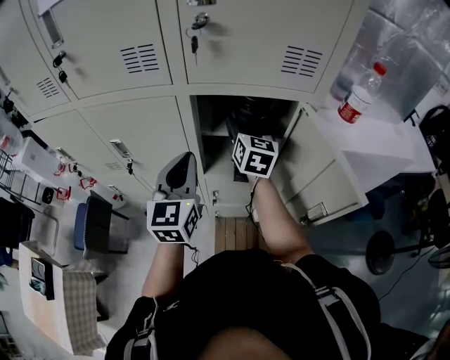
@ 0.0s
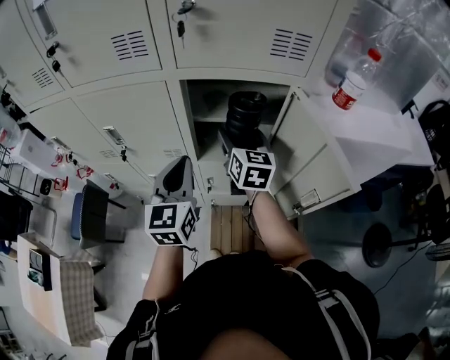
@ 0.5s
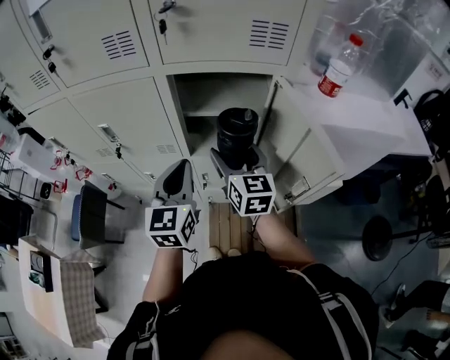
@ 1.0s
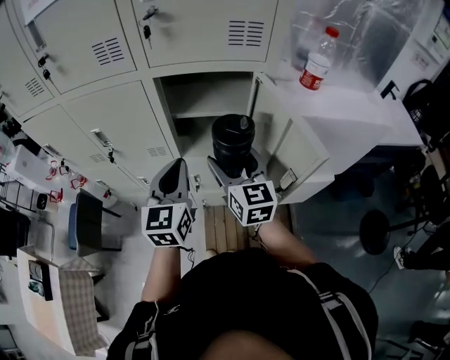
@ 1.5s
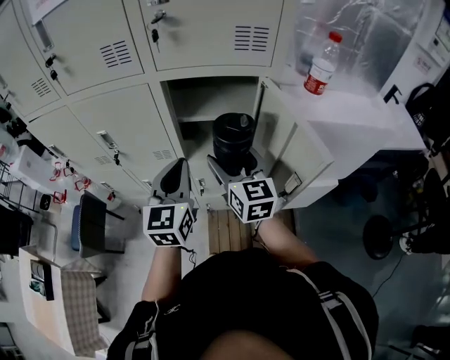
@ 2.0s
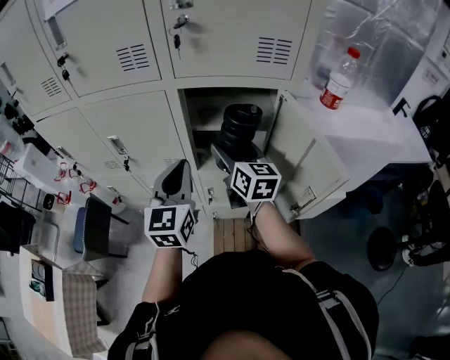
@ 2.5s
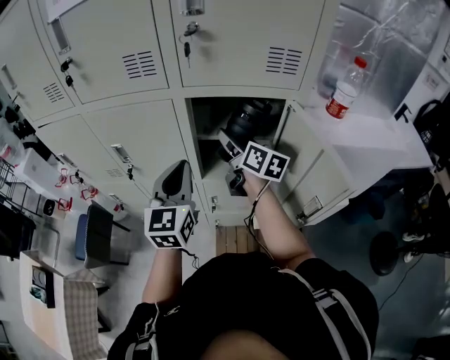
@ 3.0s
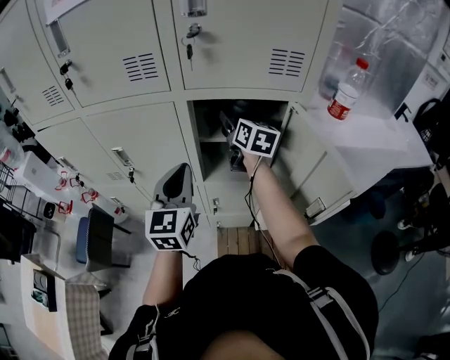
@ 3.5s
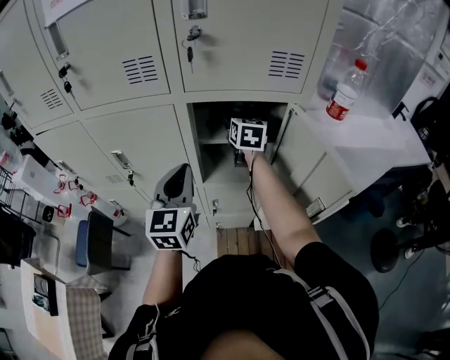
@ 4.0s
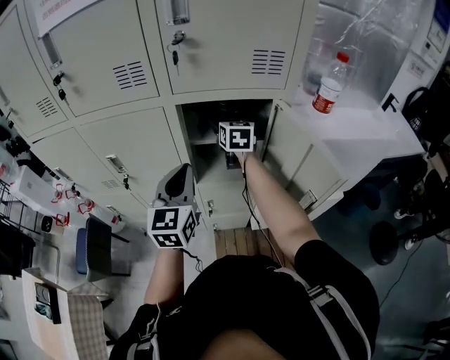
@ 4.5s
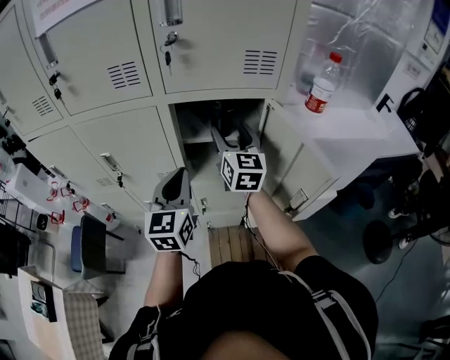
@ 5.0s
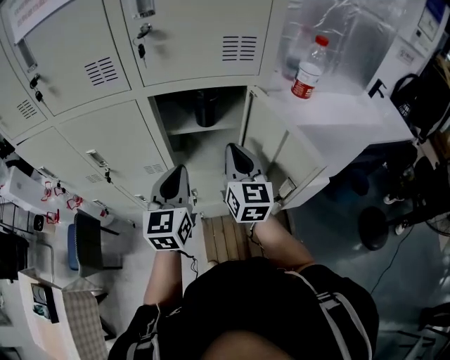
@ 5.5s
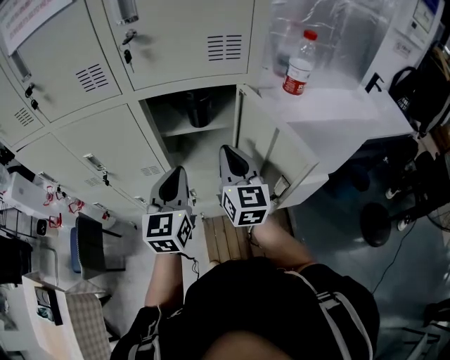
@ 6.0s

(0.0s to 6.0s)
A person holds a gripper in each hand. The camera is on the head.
0.0s - 2.0s: The right gripper goes approximately 20 cm backward. Meanwhile the left gripper shifts approximately 10 cm backward and to the right.
2.0s - 4.0s: The left gripper travels forward and to the left by about 10 cm, while the right gripper heads forward, covering about 25 cm.
4.0s - 6.0s: The right gripper heads backward, covering approximately 25 cm, and closes, while the left gripper is displaced to the right by roughly 10 cm.

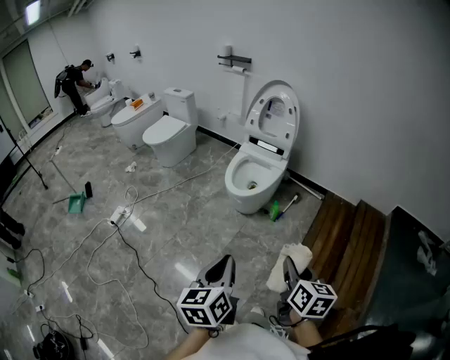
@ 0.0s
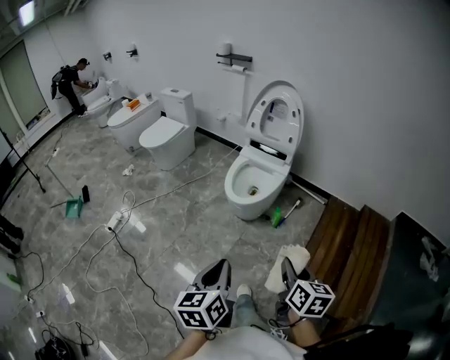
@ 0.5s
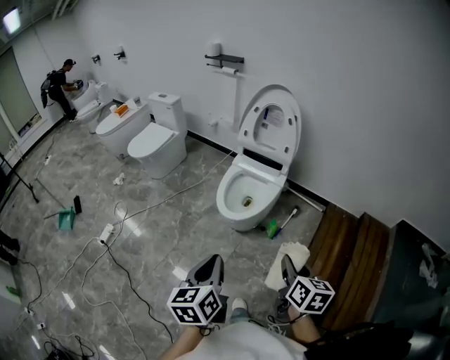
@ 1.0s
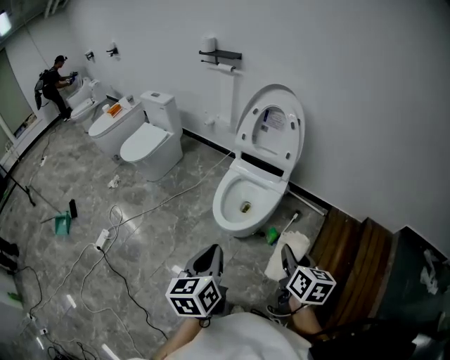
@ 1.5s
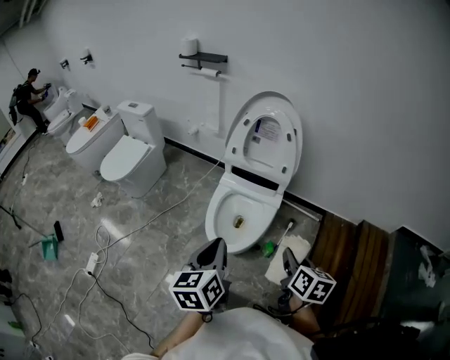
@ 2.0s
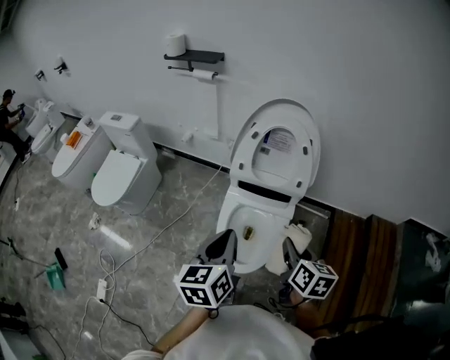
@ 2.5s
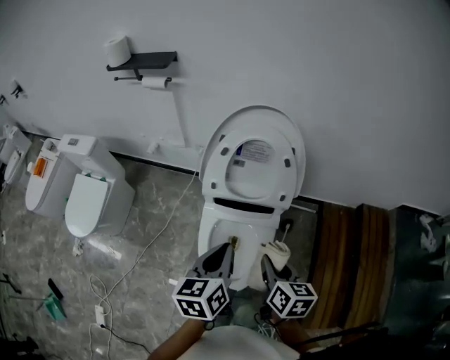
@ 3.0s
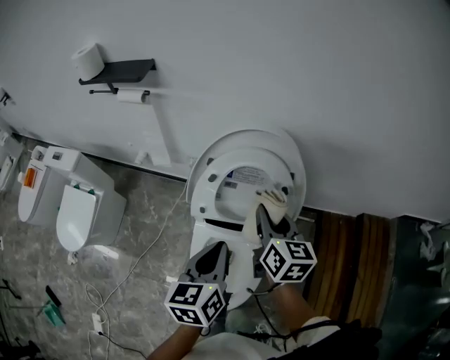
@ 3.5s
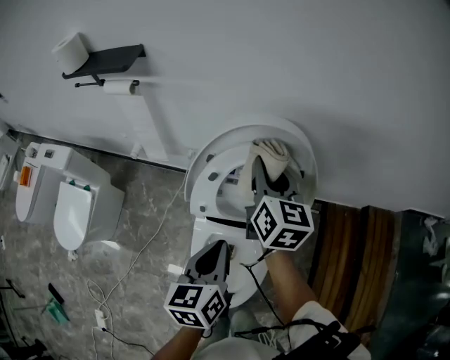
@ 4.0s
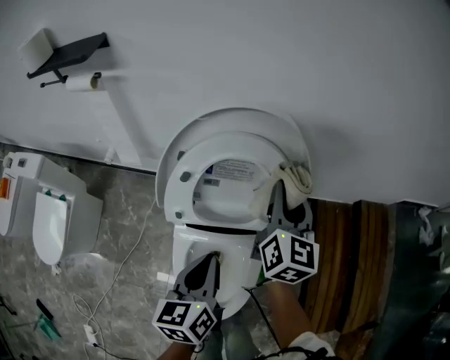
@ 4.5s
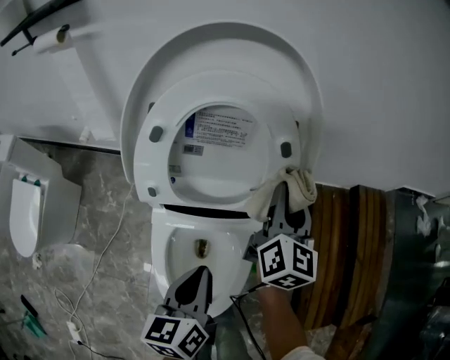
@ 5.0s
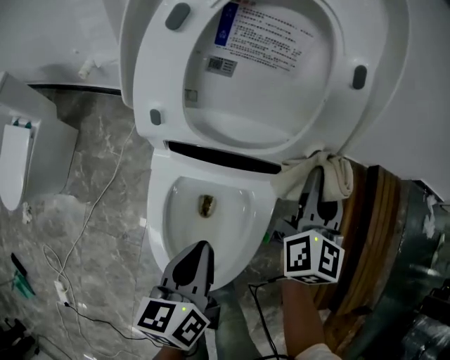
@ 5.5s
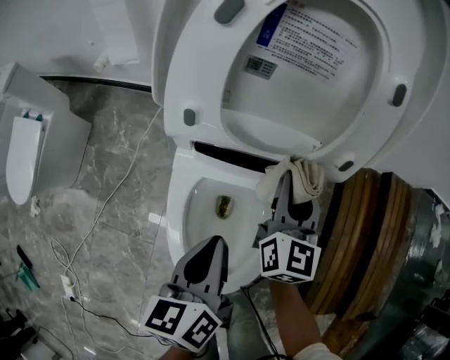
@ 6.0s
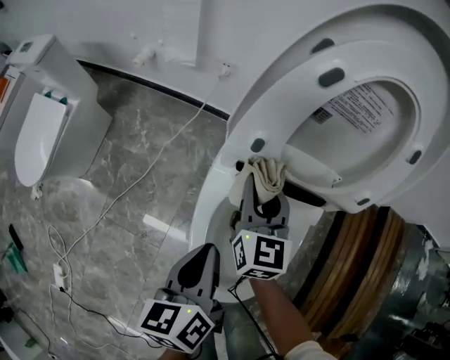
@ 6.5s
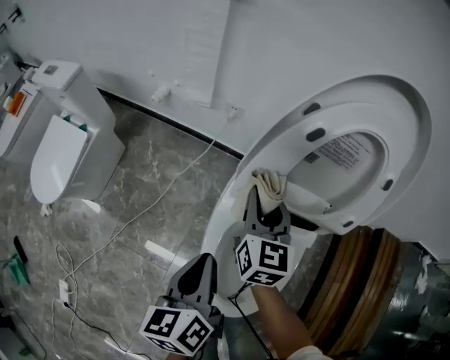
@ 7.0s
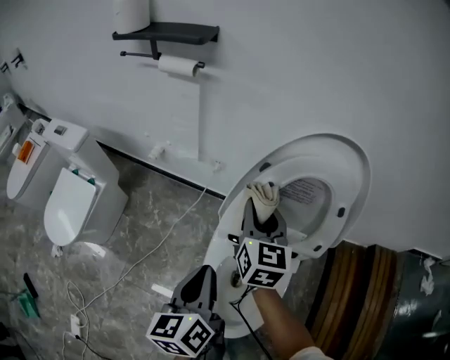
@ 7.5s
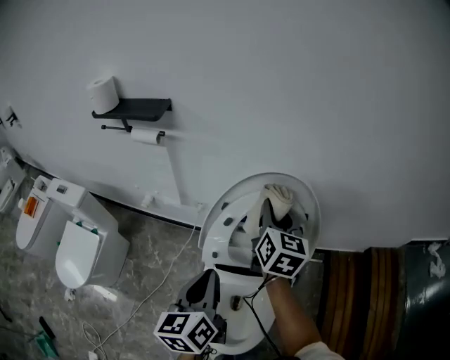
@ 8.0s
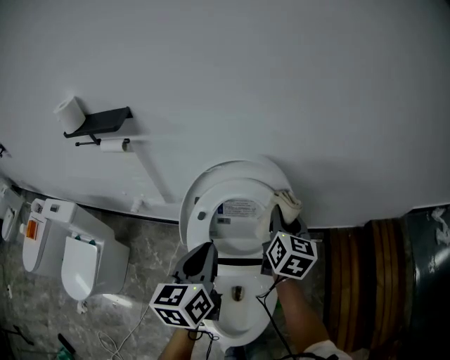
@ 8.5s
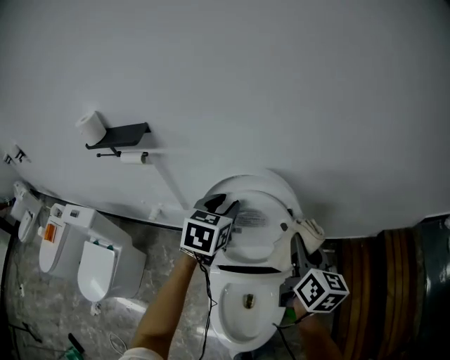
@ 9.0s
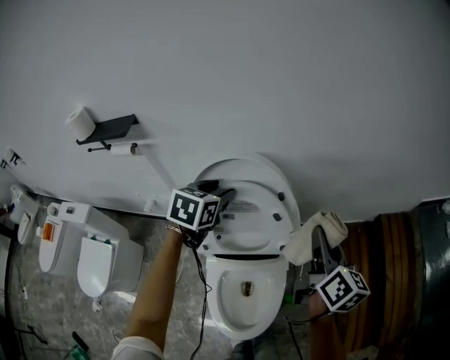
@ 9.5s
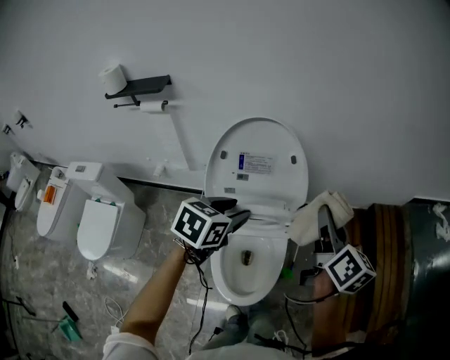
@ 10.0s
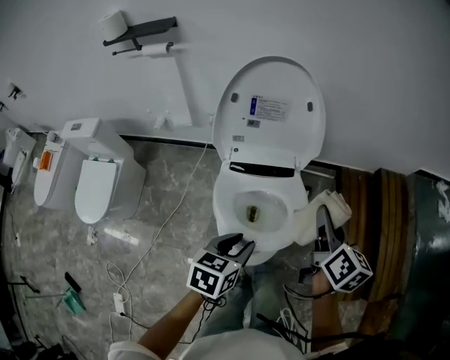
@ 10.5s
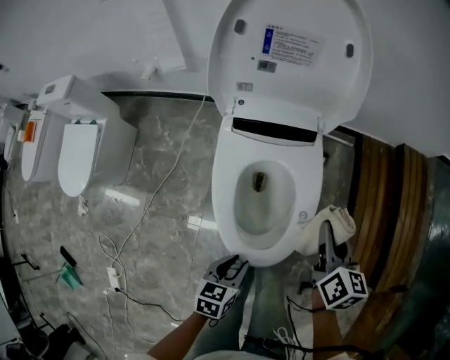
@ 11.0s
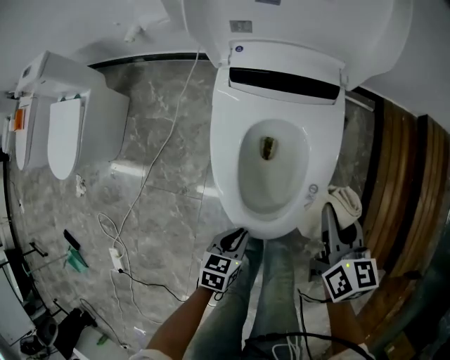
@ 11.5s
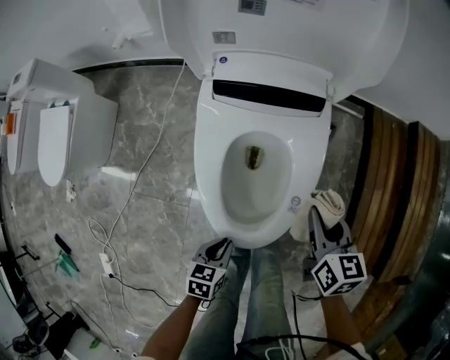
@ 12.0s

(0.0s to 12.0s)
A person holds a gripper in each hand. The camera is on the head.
0.0s - 2.0s: The pair of grippers is taken forward, roughly 50 cm.
2.0s - 4.0s: Both grippers are carried forward, roughly 50 cm. The right gripper rotates about 30 degrees.
4.0s - 6.0s: The left gripper is displaced downward by some 25 cm; the right gripper is displaced downward and backward by about 35 cm.
6.0s - 8.0s: The left gripper shifts roughly 25 cm upward. Meanwhile the right gripper is displaced upward and forward by about 35 cm.
8.0s - 10.0s: The right gripper shifts some 30 cm backward and to the right, and turns by approximately 30 degrees. Meanwhile the left gripper goes about 10 cm to the right, travels forward and back again, some 20 cm each way, rotates approximately 50 degrees, and opens.
10.0s - 12.0s: The right gripper travels downward by about 40 cm, and tips its fingers downward by about 30 degrees, while the left gripper heads downward and backward, covering some 60 cm, swivels approximately 30 degrees, and closes its fingers.

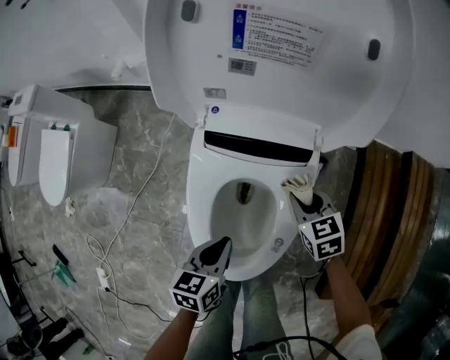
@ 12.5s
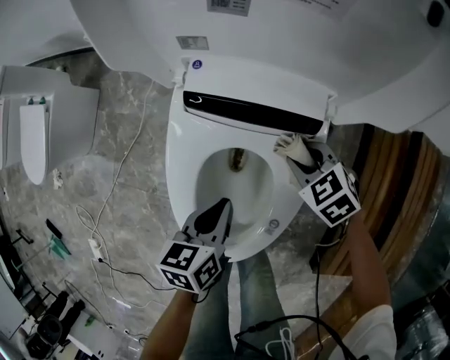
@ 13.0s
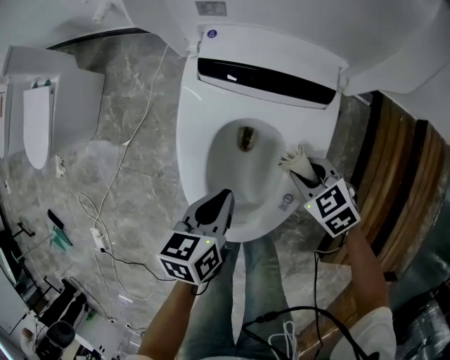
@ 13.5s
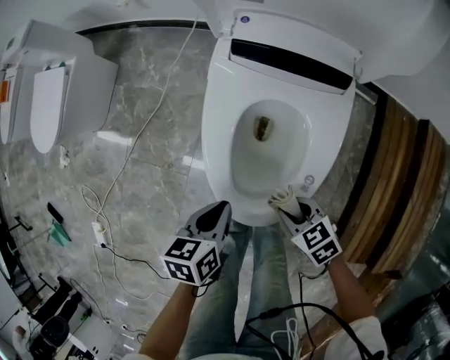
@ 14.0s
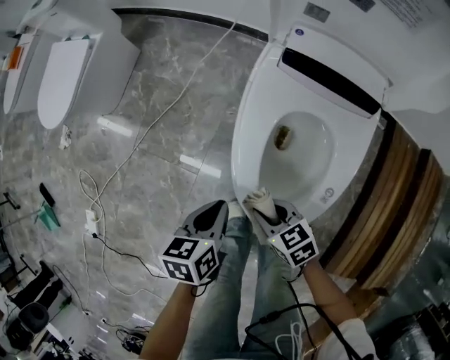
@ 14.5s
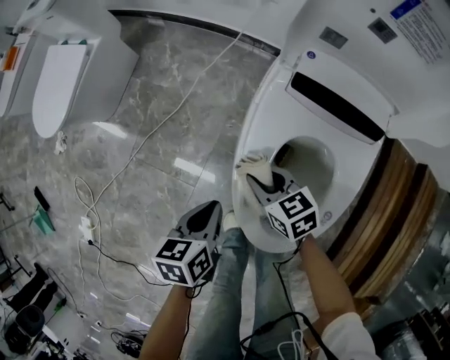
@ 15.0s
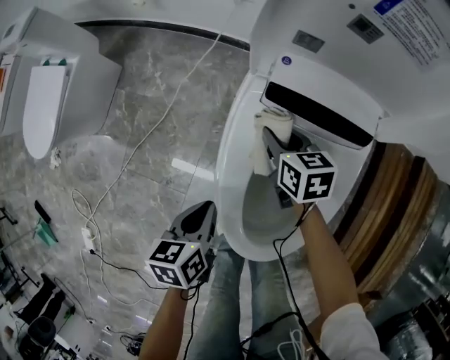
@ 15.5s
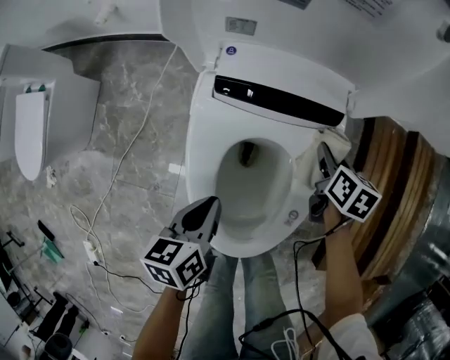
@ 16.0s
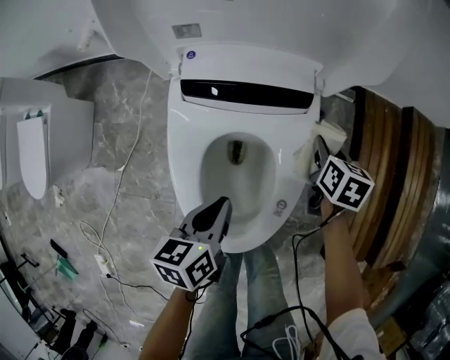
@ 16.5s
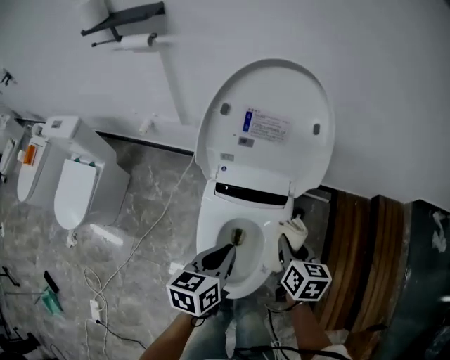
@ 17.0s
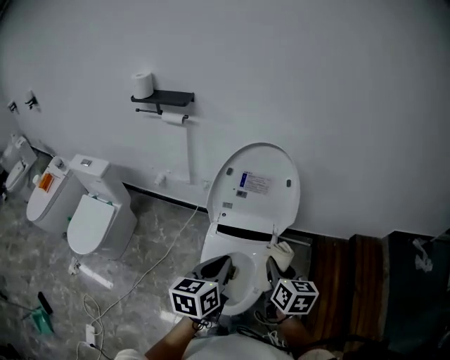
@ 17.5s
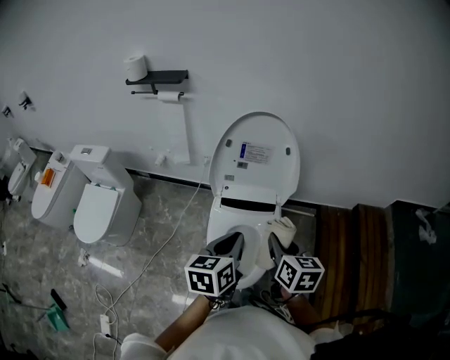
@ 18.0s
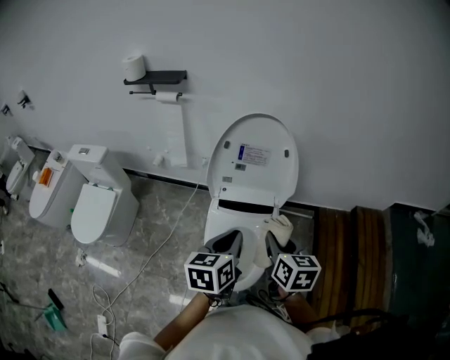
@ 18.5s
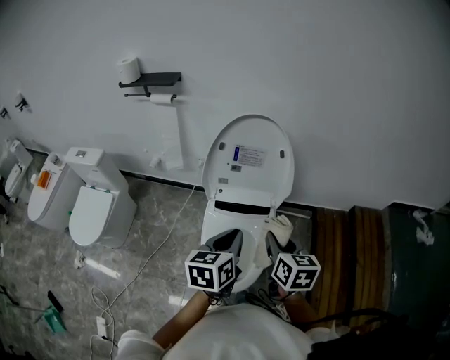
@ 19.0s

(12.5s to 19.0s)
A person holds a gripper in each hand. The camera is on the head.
12.5s - 14.5s: The right gripper shifts by some 35 cm, and rotates roughly 30 degrees. Meanwhile the left gripper changes place by some 20 cm.
14.5s - 17.0s: The left gripper heads upward, covering roughly 25 cm, and turns by approximately 20 degrees; the right gripper ends up approximately 40 cm from where it was, and swivels about 60 degrees.
17.0s - 19.0s: Both grippers move upward, approximately 20 cm.

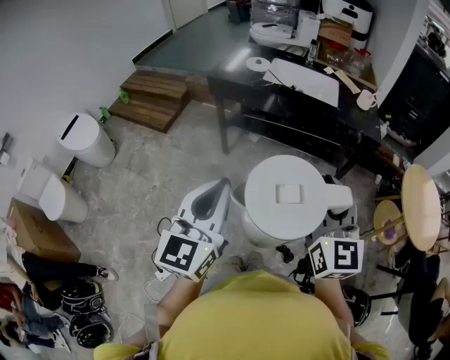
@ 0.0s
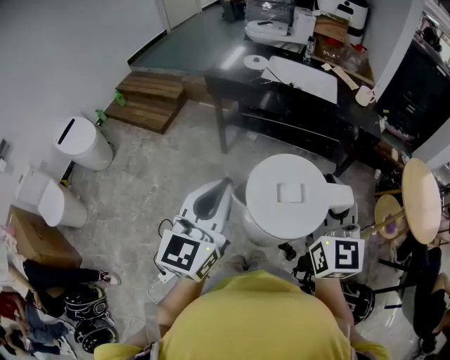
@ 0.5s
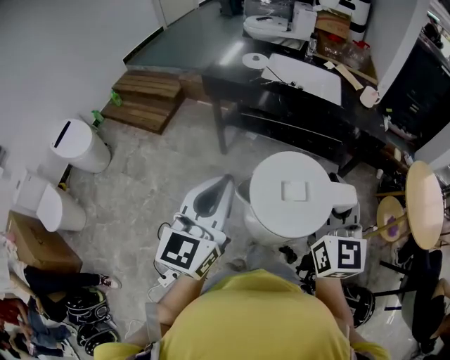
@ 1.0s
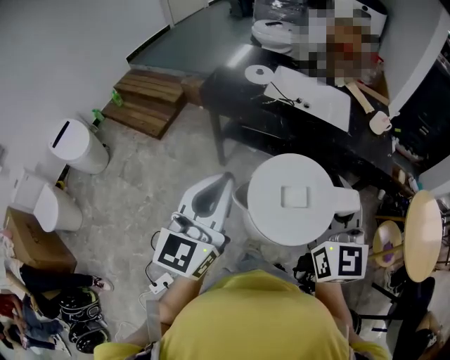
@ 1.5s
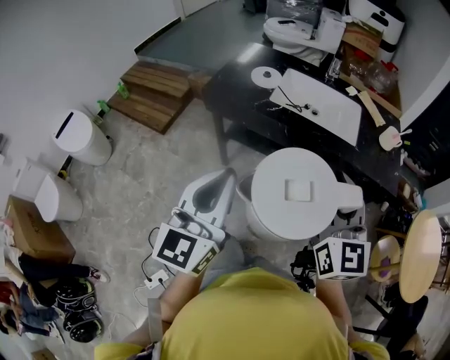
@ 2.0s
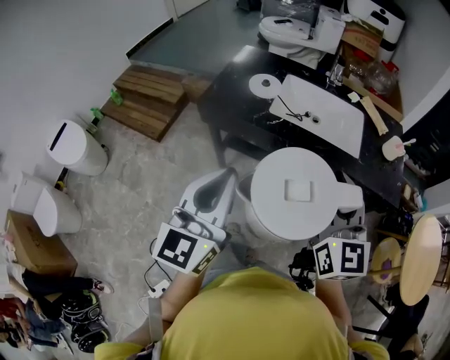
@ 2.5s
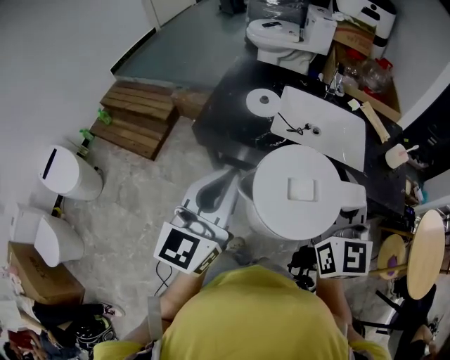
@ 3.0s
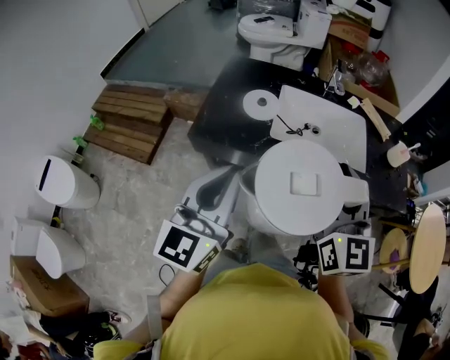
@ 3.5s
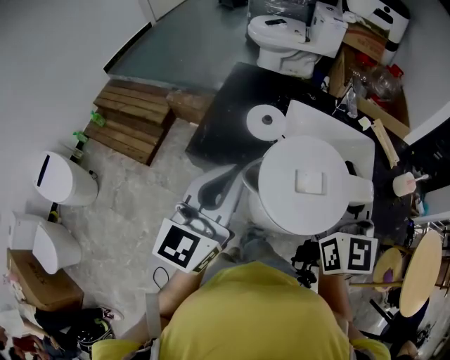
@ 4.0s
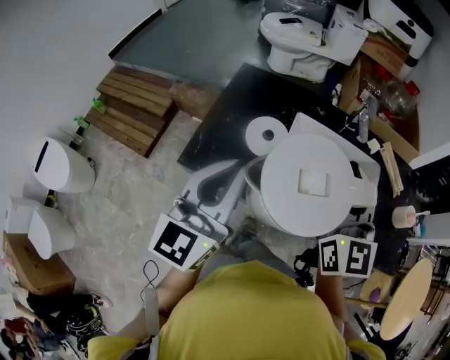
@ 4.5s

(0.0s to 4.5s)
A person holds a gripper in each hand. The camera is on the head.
0.0s - 2.0s: The grippers both shift forward by about 25 cm.
2.0s - 4.5s: The pair of grippers is taken forward, roughly 40 cm.
